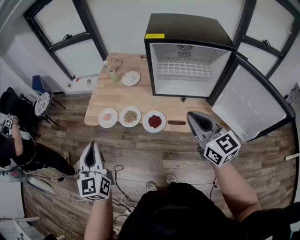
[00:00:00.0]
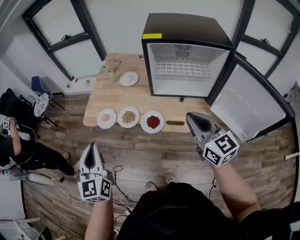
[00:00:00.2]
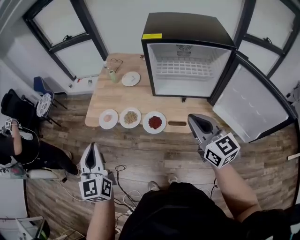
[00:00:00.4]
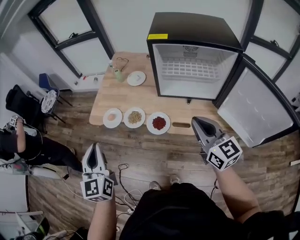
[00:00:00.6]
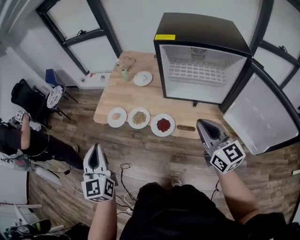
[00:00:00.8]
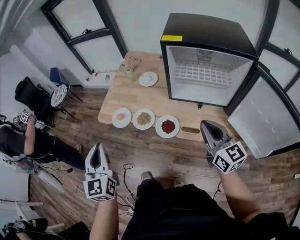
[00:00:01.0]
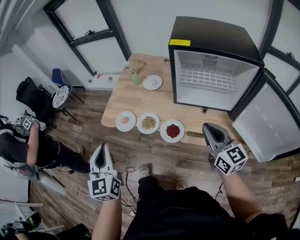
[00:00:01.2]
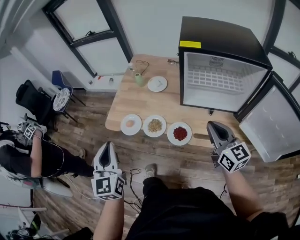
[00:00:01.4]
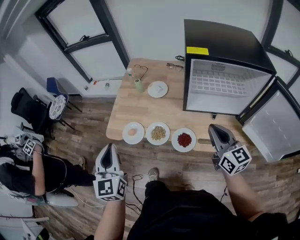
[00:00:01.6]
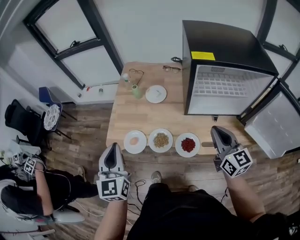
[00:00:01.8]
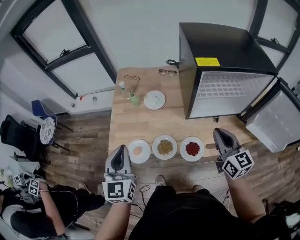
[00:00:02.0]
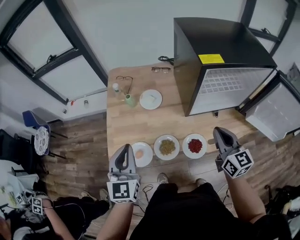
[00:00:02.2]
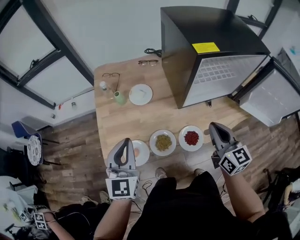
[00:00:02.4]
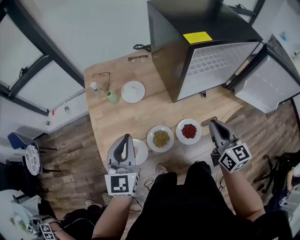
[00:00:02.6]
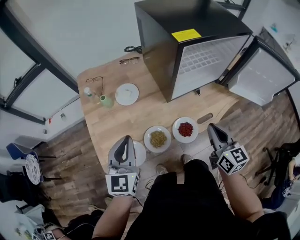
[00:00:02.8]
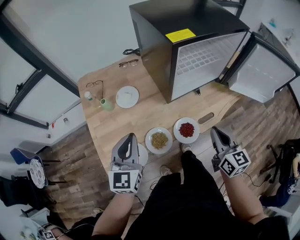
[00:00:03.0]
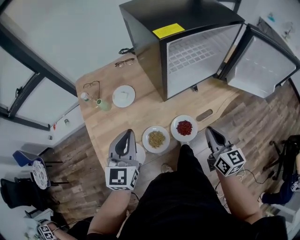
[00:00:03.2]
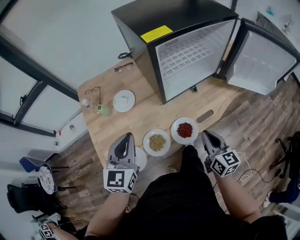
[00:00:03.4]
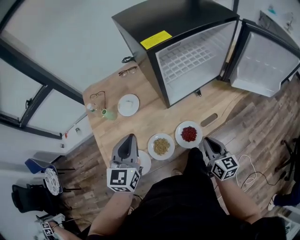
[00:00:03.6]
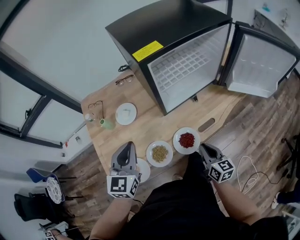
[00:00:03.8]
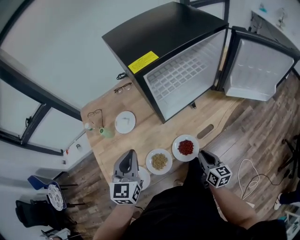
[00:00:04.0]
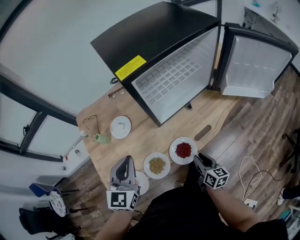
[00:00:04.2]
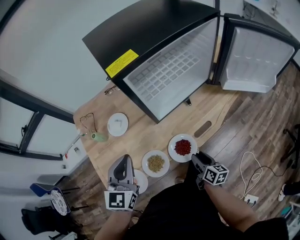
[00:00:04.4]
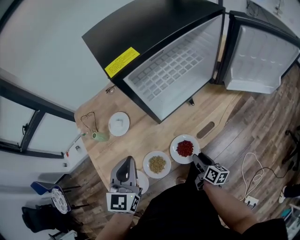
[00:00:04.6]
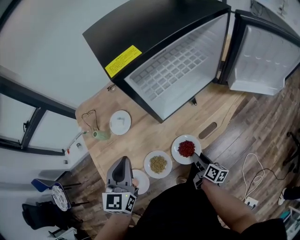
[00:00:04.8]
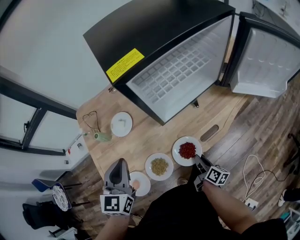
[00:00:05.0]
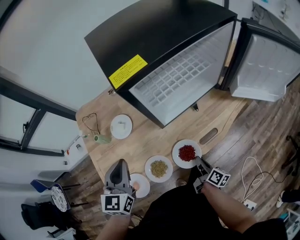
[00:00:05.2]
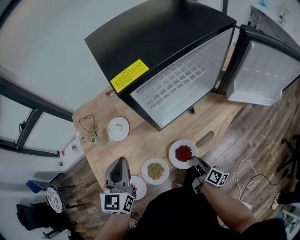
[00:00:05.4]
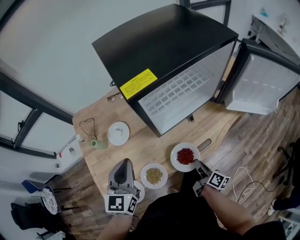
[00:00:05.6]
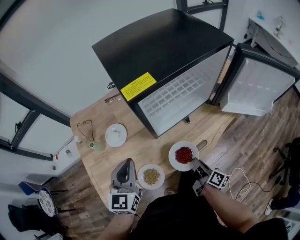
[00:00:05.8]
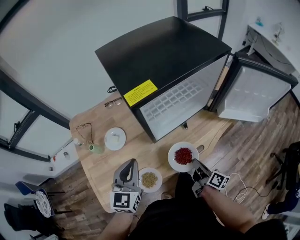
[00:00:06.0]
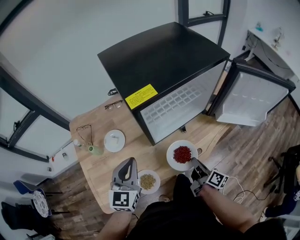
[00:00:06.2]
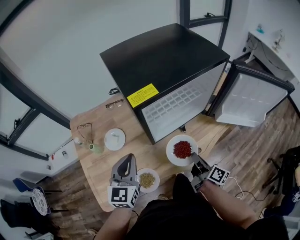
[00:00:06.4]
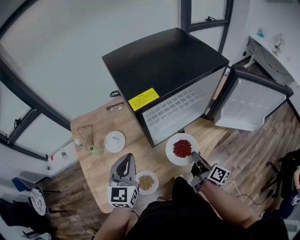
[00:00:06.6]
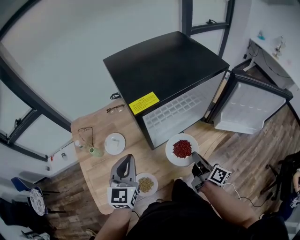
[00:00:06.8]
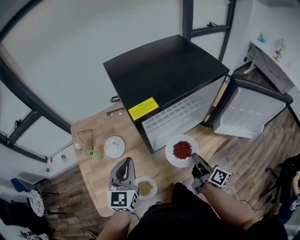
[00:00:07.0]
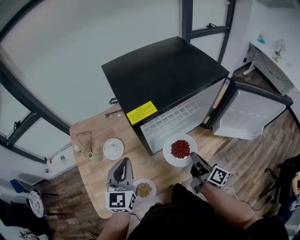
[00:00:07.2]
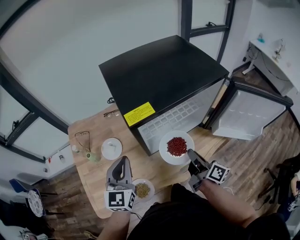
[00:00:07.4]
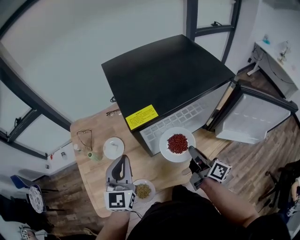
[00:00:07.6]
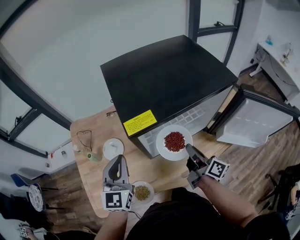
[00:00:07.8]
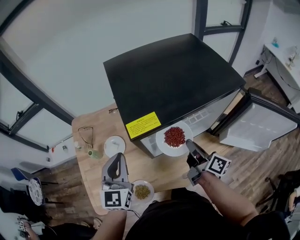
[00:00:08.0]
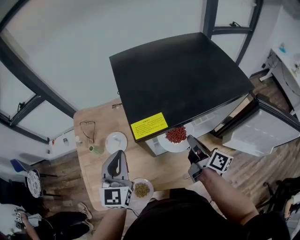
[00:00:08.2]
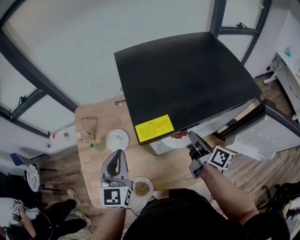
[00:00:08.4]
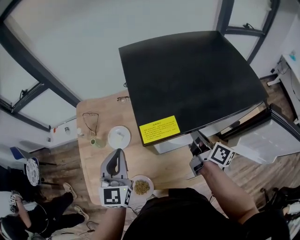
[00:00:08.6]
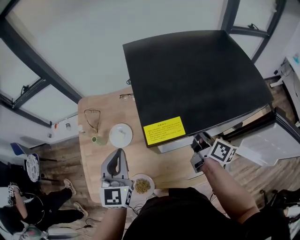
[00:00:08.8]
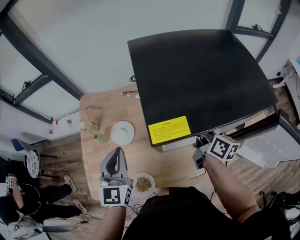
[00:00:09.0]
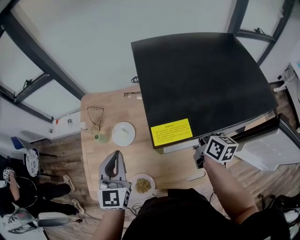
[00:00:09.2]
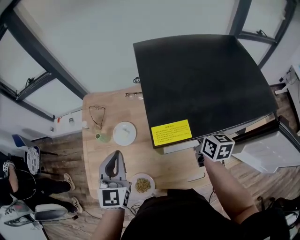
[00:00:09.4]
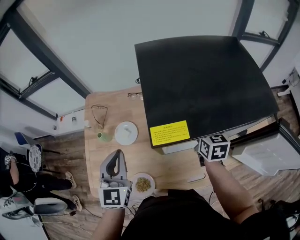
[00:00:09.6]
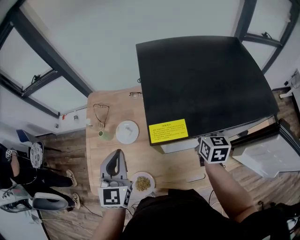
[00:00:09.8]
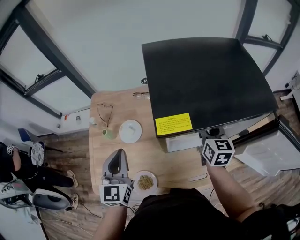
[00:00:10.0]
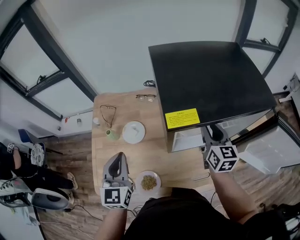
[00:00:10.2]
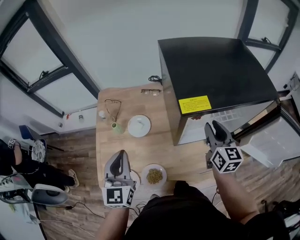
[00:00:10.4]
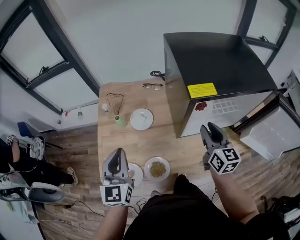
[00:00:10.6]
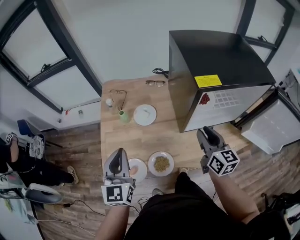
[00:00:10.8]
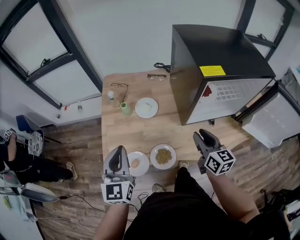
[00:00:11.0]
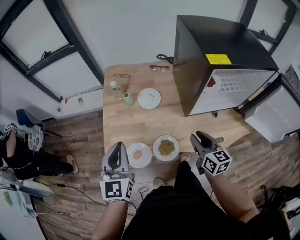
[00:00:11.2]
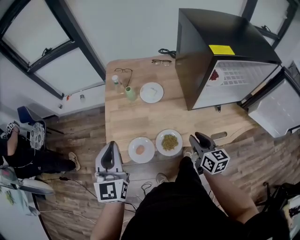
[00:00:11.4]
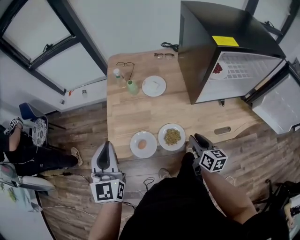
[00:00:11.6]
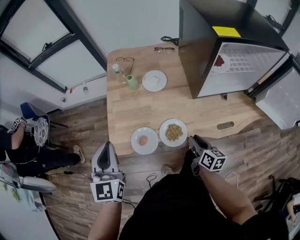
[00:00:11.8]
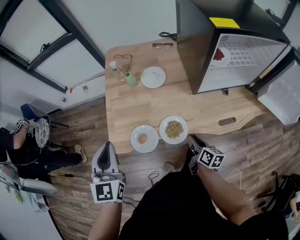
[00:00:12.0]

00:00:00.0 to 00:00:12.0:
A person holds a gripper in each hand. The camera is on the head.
00:00:00.0 to 00:00:01.6: The right gripper is displaced forward and downward by some 15 cm. Meanwhile the left gripper shifts approximately 15 cm forward.
00:00:01.6 to 00:00:03.0: The left gripper changes place by about 20 cm, and rotates about 50 degrees. Meanwhile the right gripper shifts about 5 cm downward, and changes its angle by about 40 degrees.
00:00:03.0 to 00:00:04.4: The right gripper moves downward, some 25 cm, turns by approximately 40 degrees, and opens. Meanwhile the left gripper is displaced to the right by some 5 cm.
00:00:04.4 to 00:00:06.0: The left gripper ends up some 5 cm from where it was. Meanwhile the right gripper travels upward and forward by about 10 cm, swivels about 20 degrees, and closes its fingers.
00:00:06.0 to 00:00:07.6: The right gripper heads upward and forward, covering some 20 cm. The left gripper travels upward and forward by about 10 cm.
00:00:07.6 to 00:00:09.0: The left gripper moves to the left, approximately 5 cm. Meanwhile the right gripper goes about 15 cm forward, and rotates roughly 20 degrees.
00:00:09.0 to 00:00:10.4: The right gripper is displaced backward and upward by roughly 10 cm, rotates approximately 40 degrees, and opens its fingers, while the left gripper goes about 10 cm backward and to the left.
00:00:10.4 to 00:00:12.0: The right gripper heads downward, backward and to the left, covering approximately 40 cm, and rotates about 40 degrees; the left gripper shifts approximately 20 cm to the left and backward.

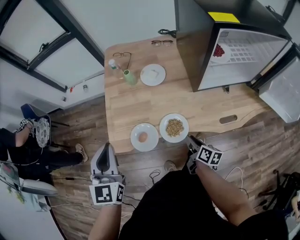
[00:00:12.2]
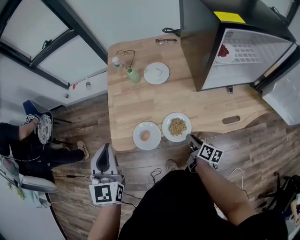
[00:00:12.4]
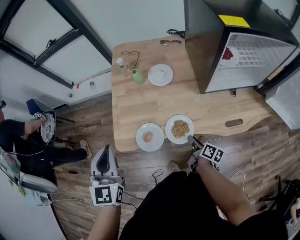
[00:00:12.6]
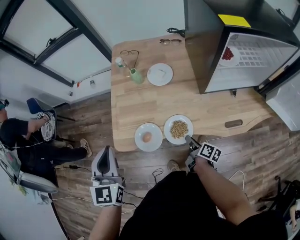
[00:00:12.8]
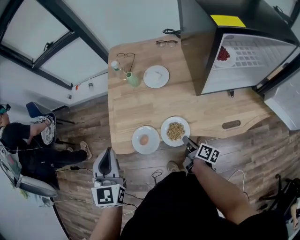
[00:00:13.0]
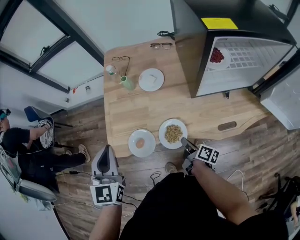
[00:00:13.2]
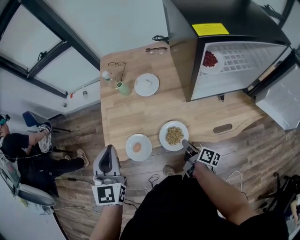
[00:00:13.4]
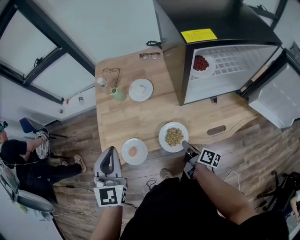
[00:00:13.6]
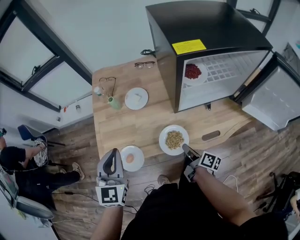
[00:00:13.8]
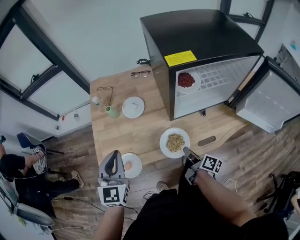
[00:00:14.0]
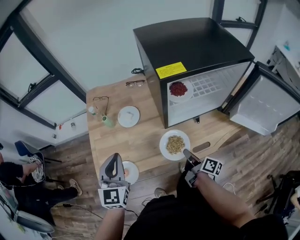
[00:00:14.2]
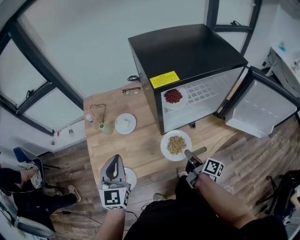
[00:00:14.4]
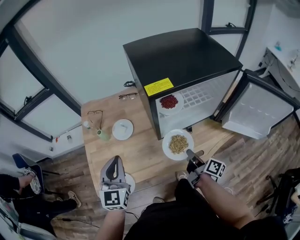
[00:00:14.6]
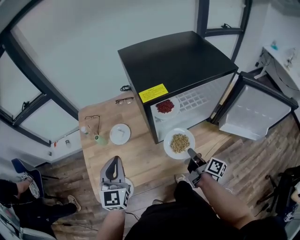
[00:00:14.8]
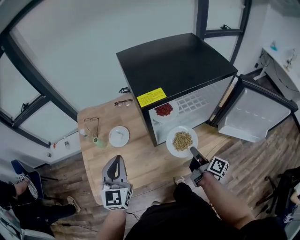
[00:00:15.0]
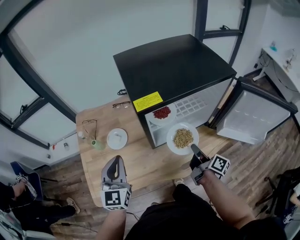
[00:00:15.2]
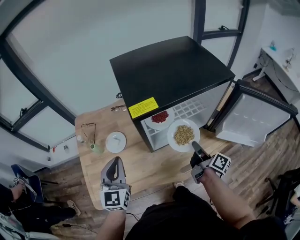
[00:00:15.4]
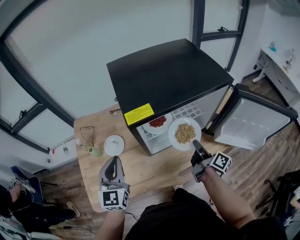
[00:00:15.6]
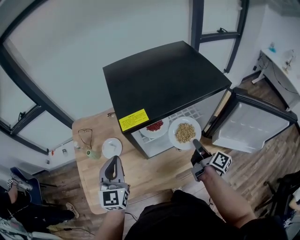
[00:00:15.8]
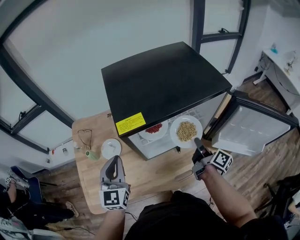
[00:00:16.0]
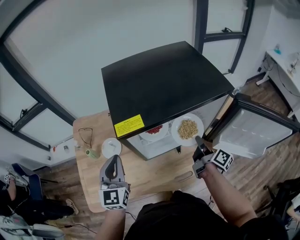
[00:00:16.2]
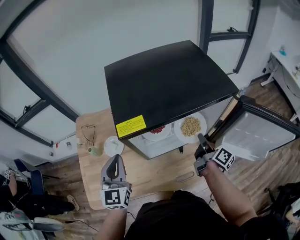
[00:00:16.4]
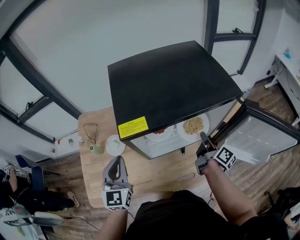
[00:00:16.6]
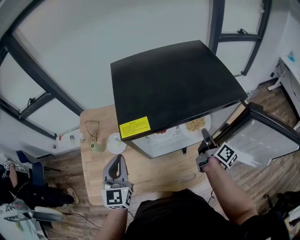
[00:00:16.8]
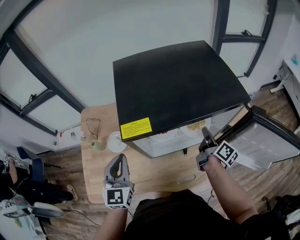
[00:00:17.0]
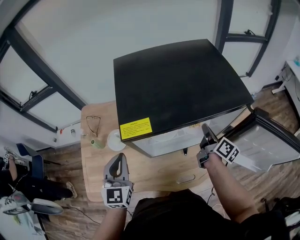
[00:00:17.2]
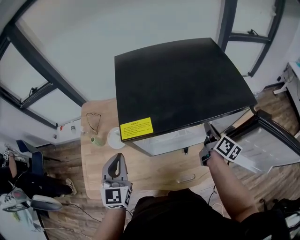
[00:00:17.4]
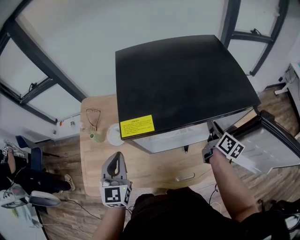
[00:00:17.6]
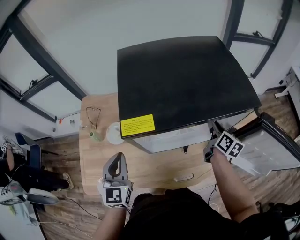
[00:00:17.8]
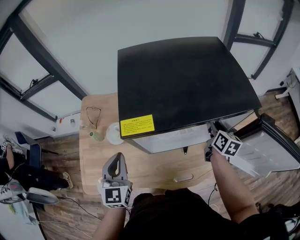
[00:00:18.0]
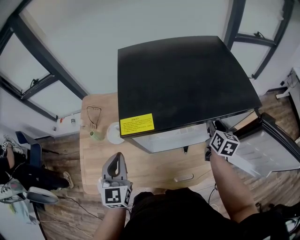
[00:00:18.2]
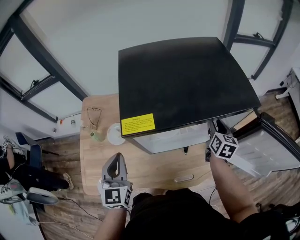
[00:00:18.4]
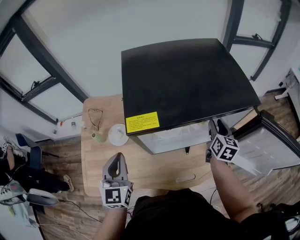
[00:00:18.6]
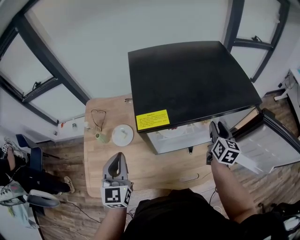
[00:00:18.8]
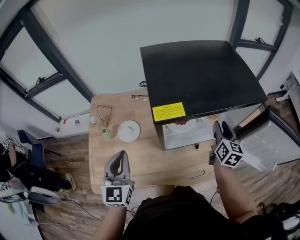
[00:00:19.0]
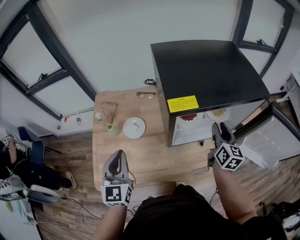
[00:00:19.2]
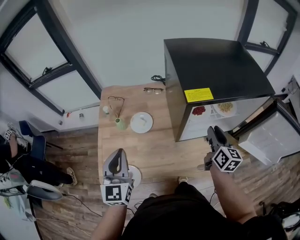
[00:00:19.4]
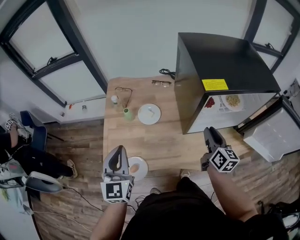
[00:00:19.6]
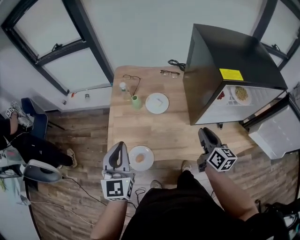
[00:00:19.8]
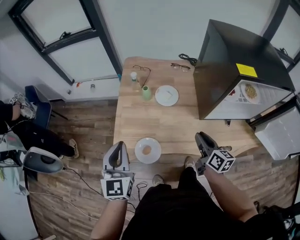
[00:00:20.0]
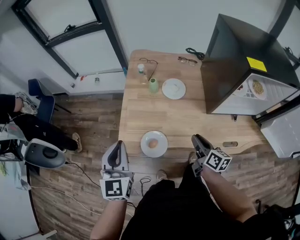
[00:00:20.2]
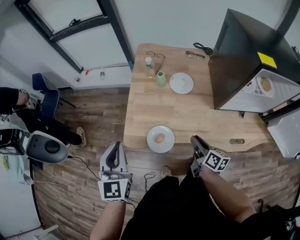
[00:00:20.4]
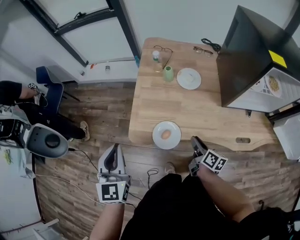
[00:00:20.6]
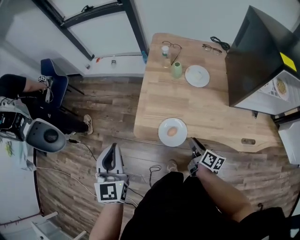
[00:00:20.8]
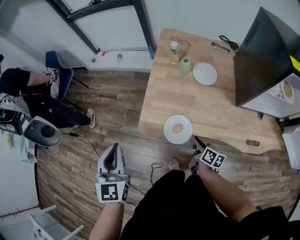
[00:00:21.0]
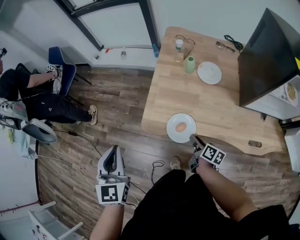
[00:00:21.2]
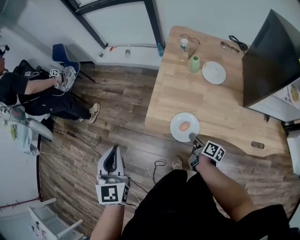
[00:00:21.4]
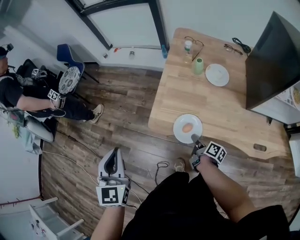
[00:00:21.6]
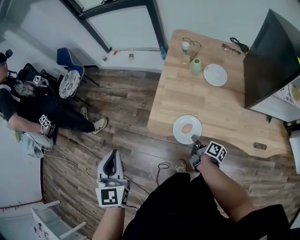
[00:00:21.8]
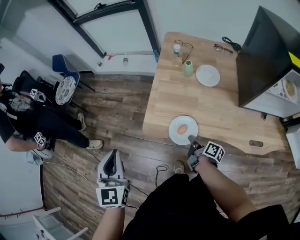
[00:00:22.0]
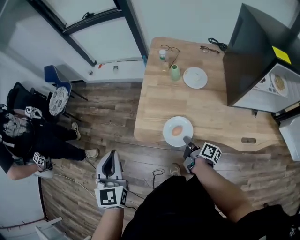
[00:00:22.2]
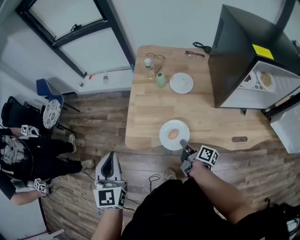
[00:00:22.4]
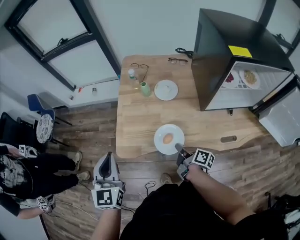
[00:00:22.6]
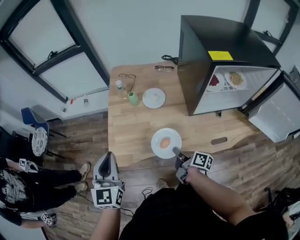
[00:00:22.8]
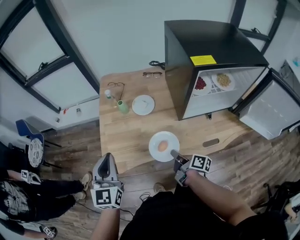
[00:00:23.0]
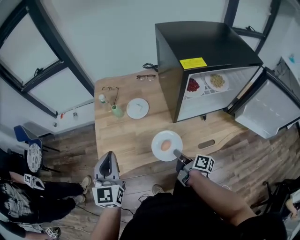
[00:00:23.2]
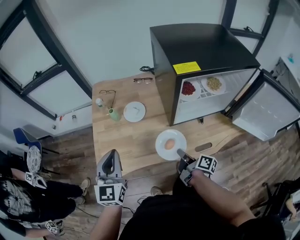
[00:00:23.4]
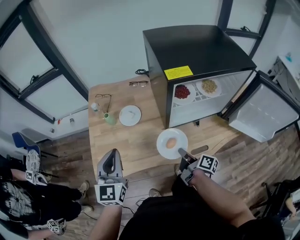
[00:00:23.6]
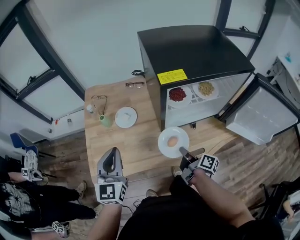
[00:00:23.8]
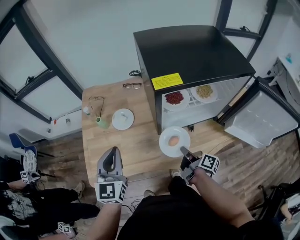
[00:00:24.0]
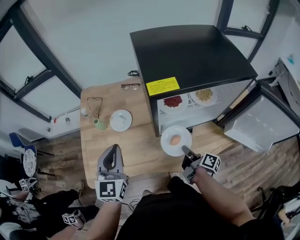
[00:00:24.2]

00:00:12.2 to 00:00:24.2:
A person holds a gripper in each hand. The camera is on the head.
00:00:12.2 to 00:00:13.8: The right gripper travels to the right and upward by approximately 10 cm, turns by about 20 degrees, and closes. The left gripper travels to the right by roughly 10 cm.
00:00:13.8 to 00:00:15.2: The right gripper travels to the right, upward and forward by some 25 cm, and changes its angle by about 20 degrees, while the left gripper is displaced to the right and forward by roughly 15 cm.
00:00:15.2 to 00:00:16.6: The right gripper moves forward and to the right, about 15 cm; the left gripper goes roughly 10 cm to the right and forward.
00:00:16.6 to 00:00:18.2: The right gripper is displaced forward by about 10 cm, twists some 50 degrees counterclockwise, seen from behind, and opens.
00:00:18.2 to 00:00:19.8: Both grippers move to the left and backward, roughly 30 cm. The right gripper turns by about 20 degrees.
00:00:19.8 to 00:00:21.2: The right gripper travels to the left and downward by about 35 cm, and rotates roughly 40 degrees. Meanwhile the left gripper moves to the left and backward, approximately 25 cm, and swivels approximately 20 degrees.
00:00:21.2 to 00:00:22.6: The right gripper travels upward and to the right by approximately 10 cm, changes its angle by approximately 20 degrees, and closes its fingers. The left gripper moves to the right, some 10 cm.
00:00:22.6 to 00:00:24.2: The right gripper shifts approximately 30 cm to the right. The left gripper shifts roughly 30 cm to the right and forward.
